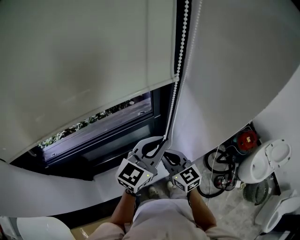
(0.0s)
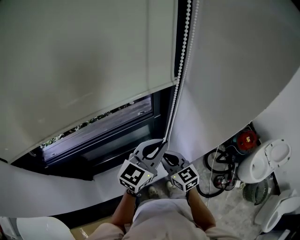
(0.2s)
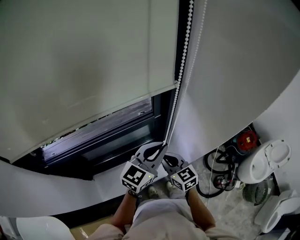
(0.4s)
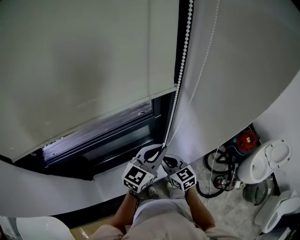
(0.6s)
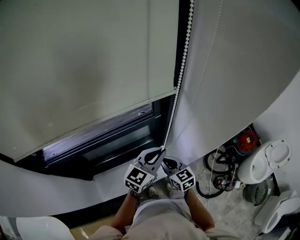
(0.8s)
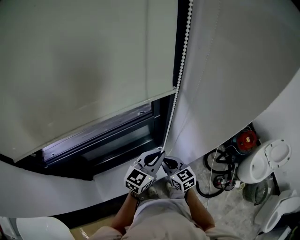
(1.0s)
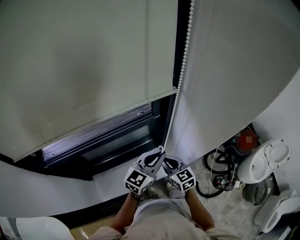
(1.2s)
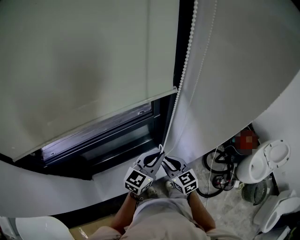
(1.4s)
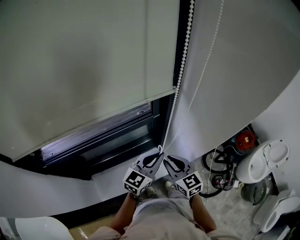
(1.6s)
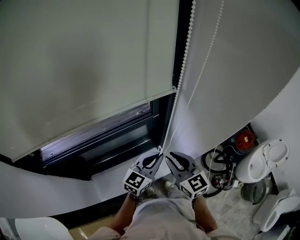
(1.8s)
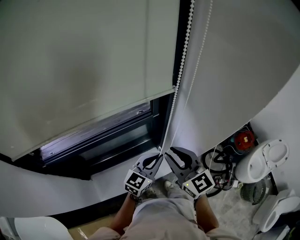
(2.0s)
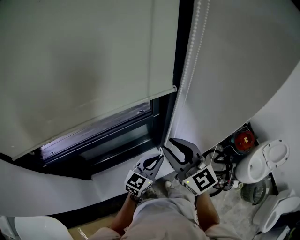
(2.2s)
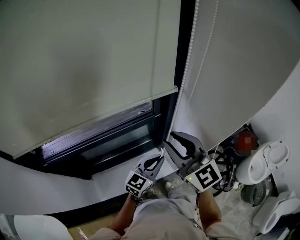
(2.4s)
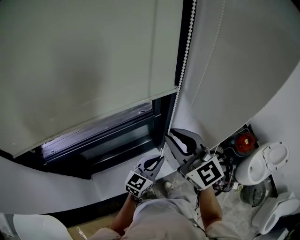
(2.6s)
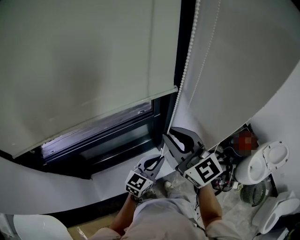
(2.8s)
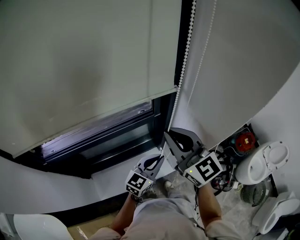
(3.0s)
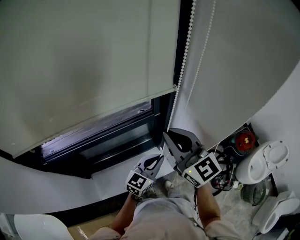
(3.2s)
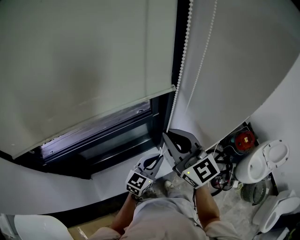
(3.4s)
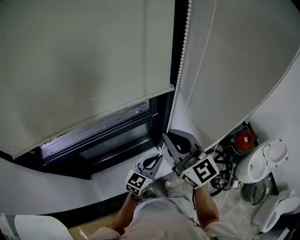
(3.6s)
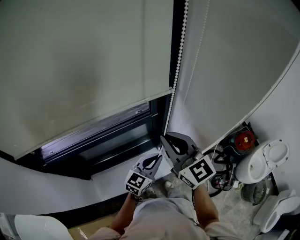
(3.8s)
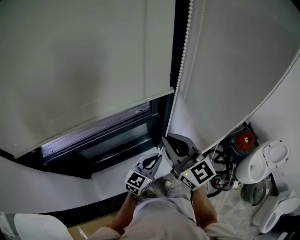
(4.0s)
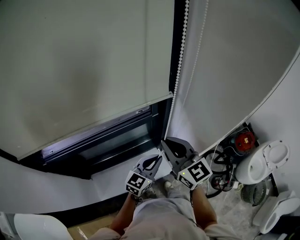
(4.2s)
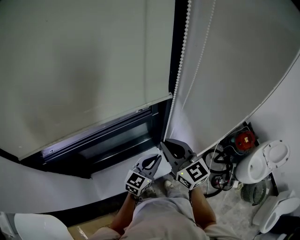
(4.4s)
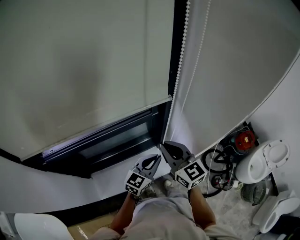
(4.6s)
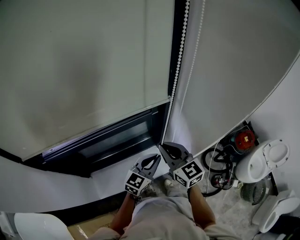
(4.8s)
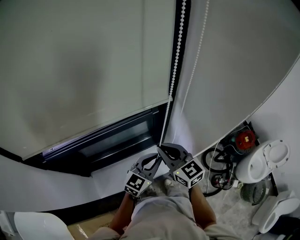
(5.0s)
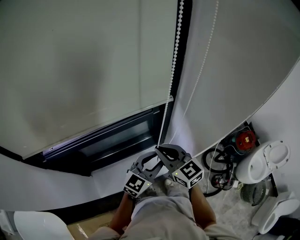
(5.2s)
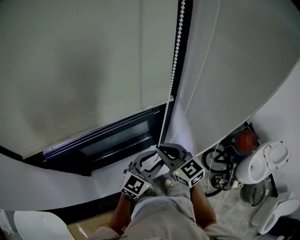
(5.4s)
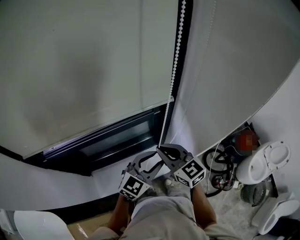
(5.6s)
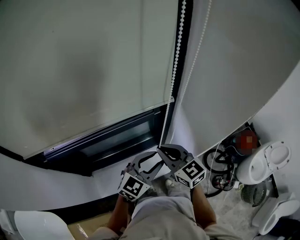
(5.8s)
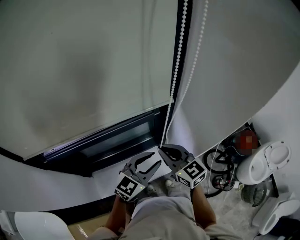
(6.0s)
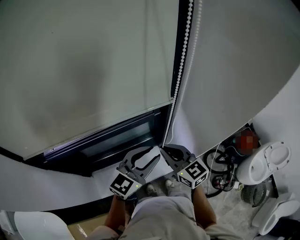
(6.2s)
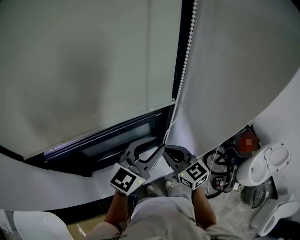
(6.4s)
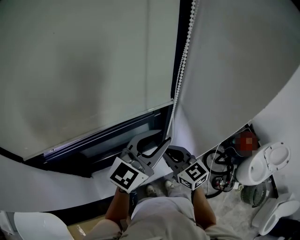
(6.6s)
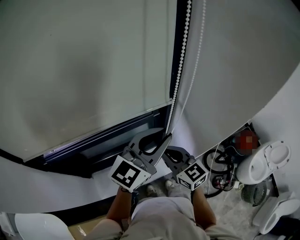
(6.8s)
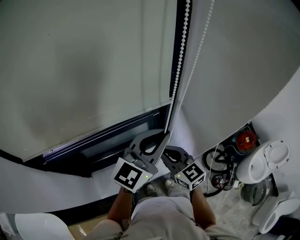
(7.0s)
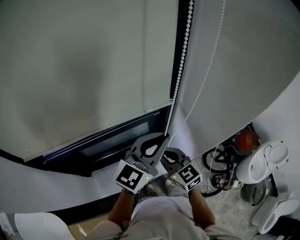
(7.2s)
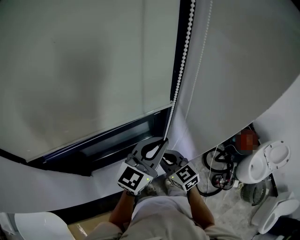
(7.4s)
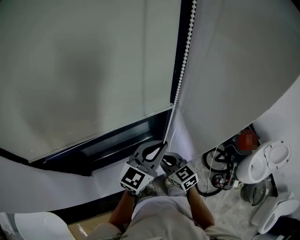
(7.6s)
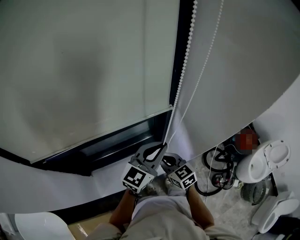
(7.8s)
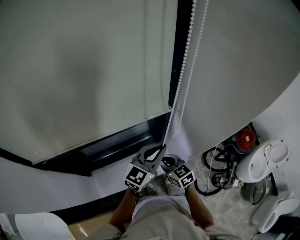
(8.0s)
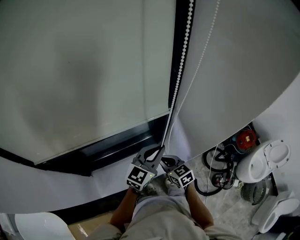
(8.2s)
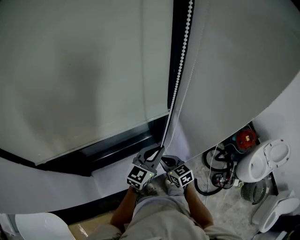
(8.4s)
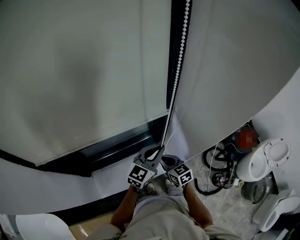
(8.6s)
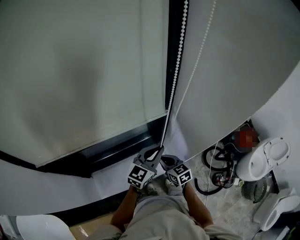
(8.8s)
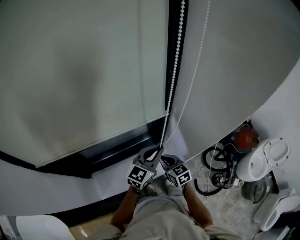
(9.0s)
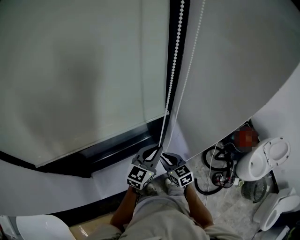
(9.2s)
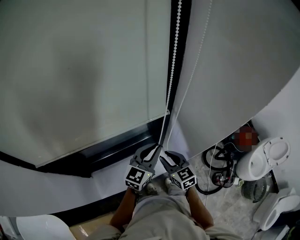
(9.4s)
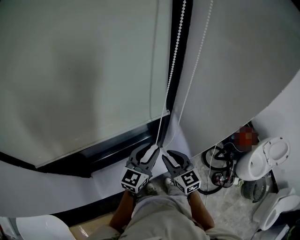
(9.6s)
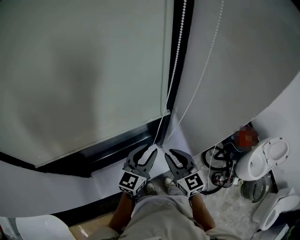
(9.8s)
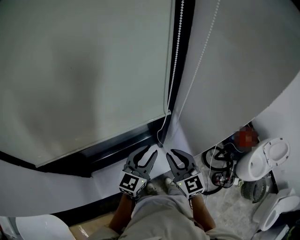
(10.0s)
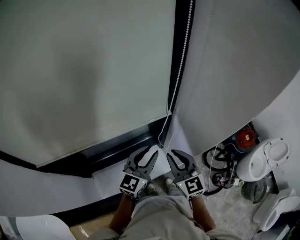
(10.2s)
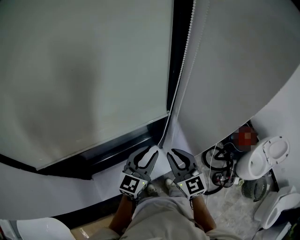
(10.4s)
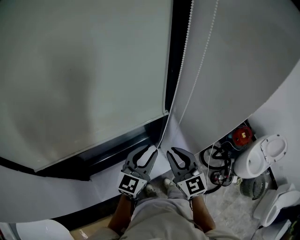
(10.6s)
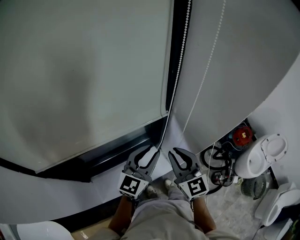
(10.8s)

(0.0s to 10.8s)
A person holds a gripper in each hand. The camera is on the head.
0.0s - 1.6s: The left gripper shifts approximately 10 cm downward.
1.6s - 3.0s: The right gripper moves upward, roughly 20 cm, and rotates roughly 20 degrees.
3.0s - 4.6s: The right gripper shifts approximately 10 cm downward.
4.6s - 6.2s: The left gripper moves upward, roughly 15 cm, and opens up.
6.2s - 7.8s: The left gripper moves roughly 10 cm upward and comes back, and closes its fingers. The right gripper heads downward, covering about 10 cm.
7.8s - 9.2s: The two grippers go some 5 cm downward.
9.2s - 10.8s: The left gripper moves upward, about 5 cm, and opens; the right gripper travels upward by approximately 20 cm, and swivels approximately 30 degrees.

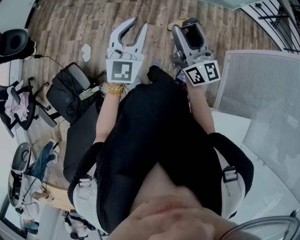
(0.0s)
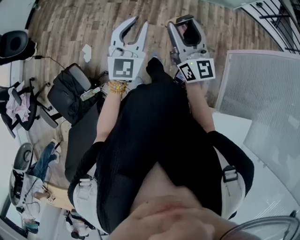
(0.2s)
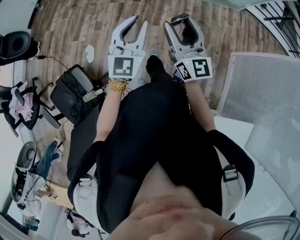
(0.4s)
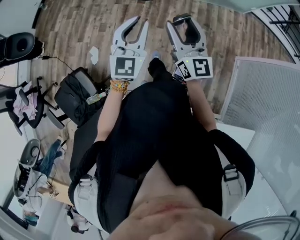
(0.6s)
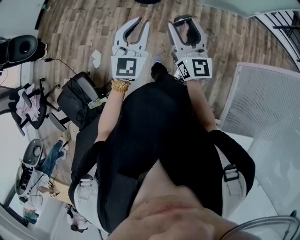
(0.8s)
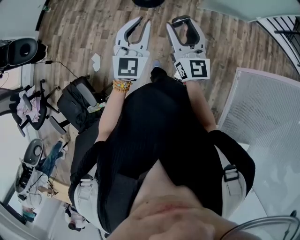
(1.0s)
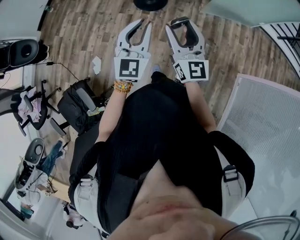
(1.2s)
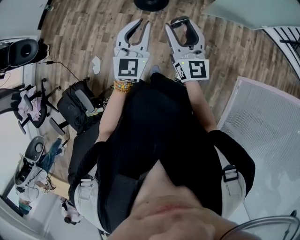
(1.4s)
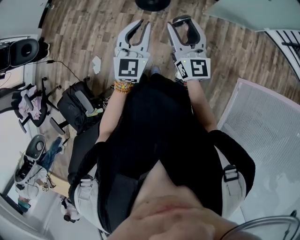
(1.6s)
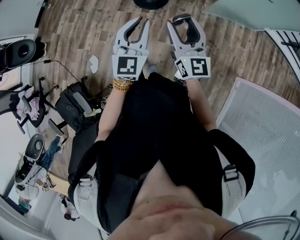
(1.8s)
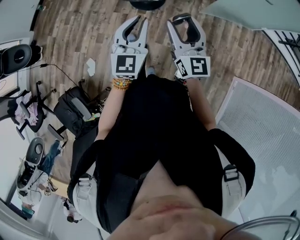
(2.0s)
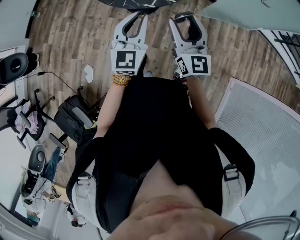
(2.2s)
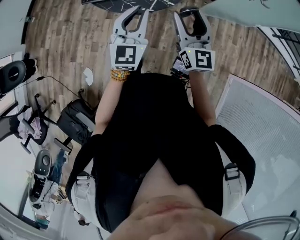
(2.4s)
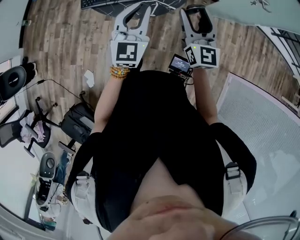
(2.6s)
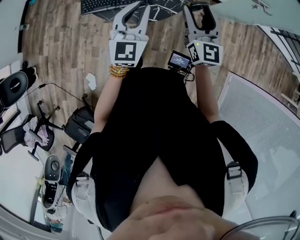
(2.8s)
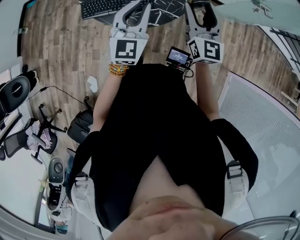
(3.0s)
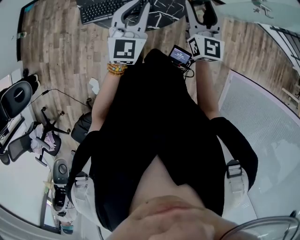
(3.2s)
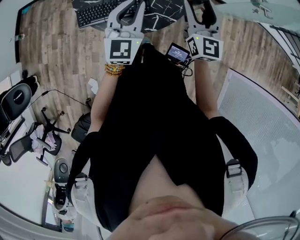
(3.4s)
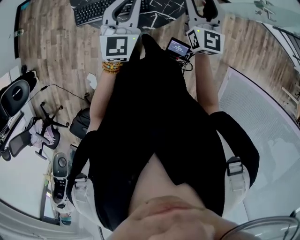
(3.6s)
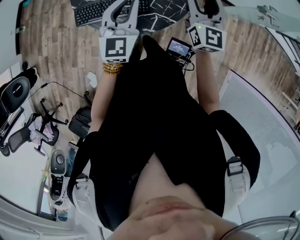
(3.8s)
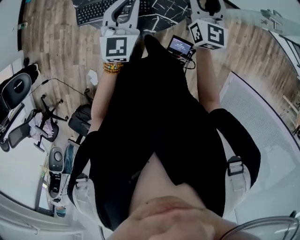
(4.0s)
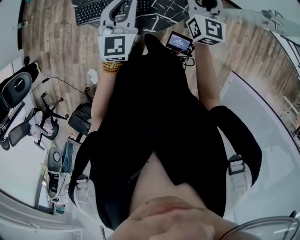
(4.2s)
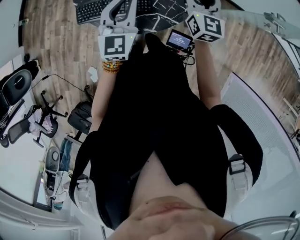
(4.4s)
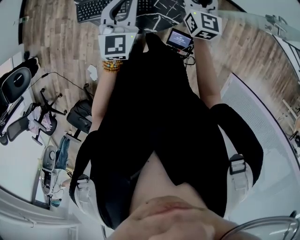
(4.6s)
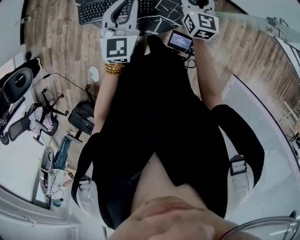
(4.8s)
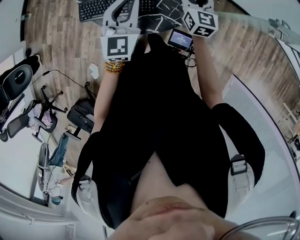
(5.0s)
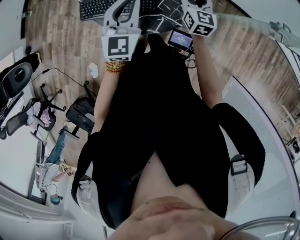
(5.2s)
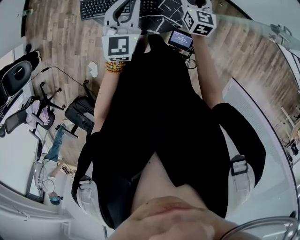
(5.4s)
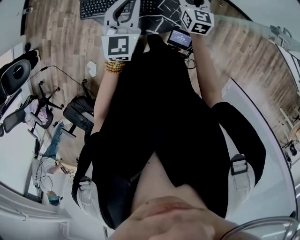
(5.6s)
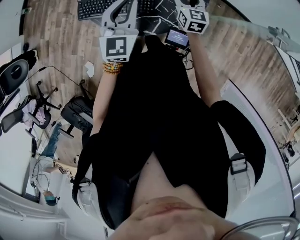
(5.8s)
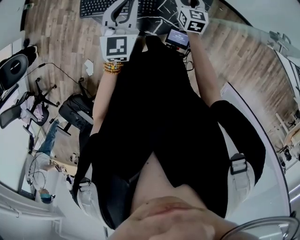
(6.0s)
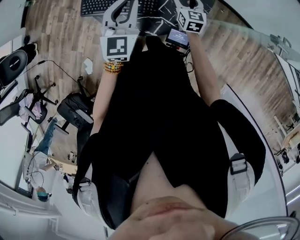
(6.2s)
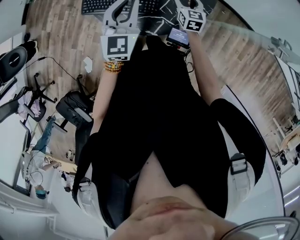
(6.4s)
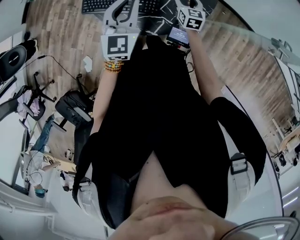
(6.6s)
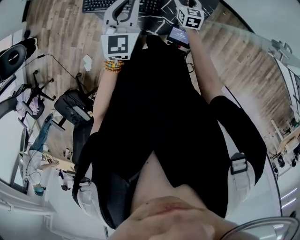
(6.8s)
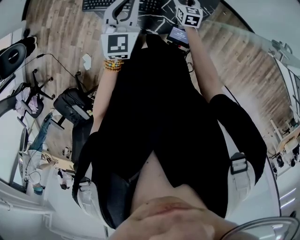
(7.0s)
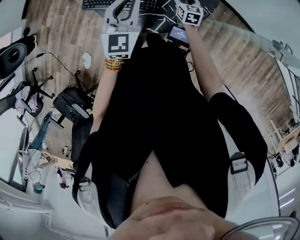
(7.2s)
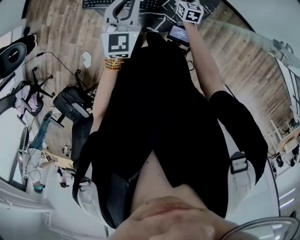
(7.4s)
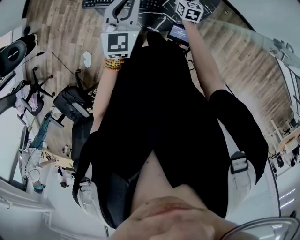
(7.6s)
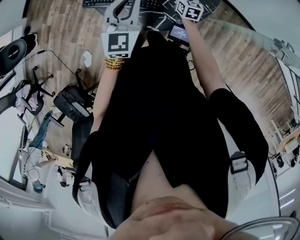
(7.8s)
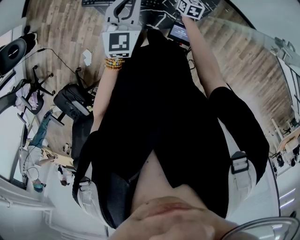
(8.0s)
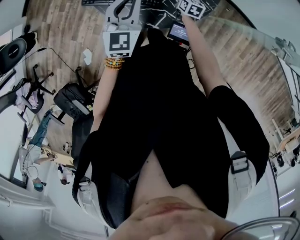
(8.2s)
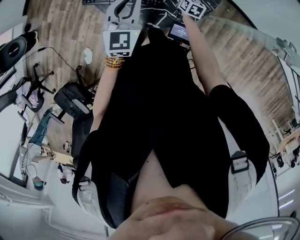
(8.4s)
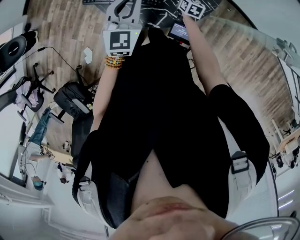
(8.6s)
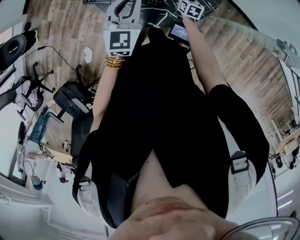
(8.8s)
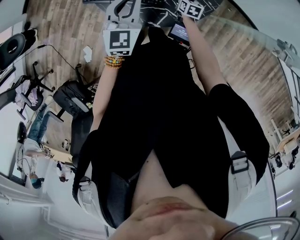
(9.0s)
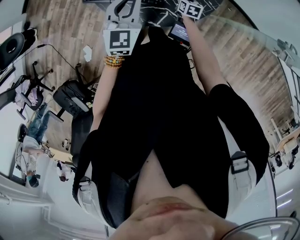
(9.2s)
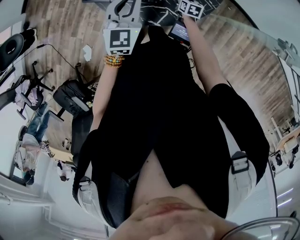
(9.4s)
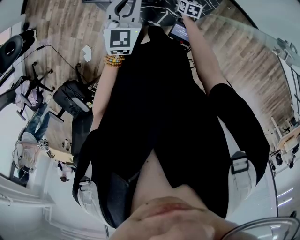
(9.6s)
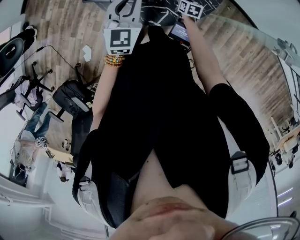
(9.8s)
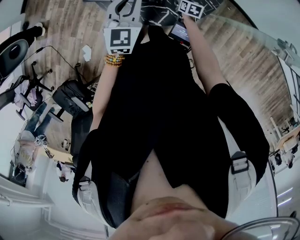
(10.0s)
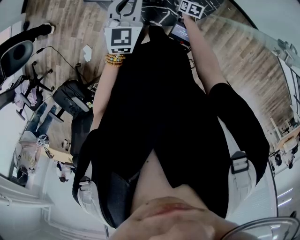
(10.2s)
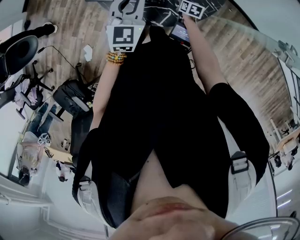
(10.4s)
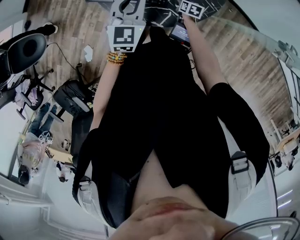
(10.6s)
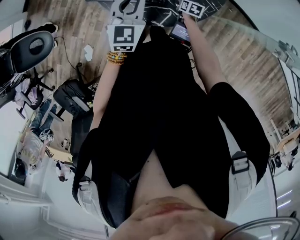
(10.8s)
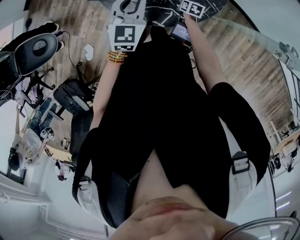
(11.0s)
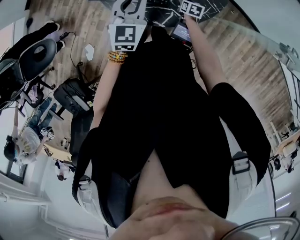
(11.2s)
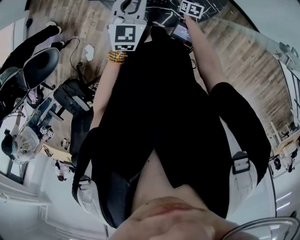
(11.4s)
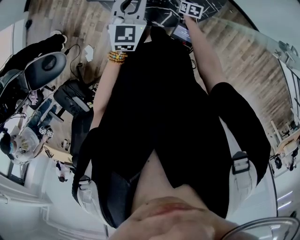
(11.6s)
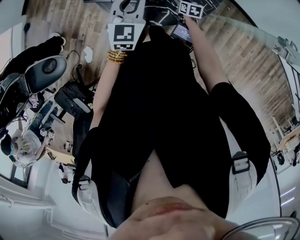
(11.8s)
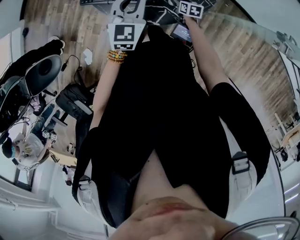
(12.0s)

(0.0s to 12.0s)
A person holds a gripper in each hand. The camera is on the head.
0.0s - 1.6s: Both grippers move forward, roughly 35 cm.
1.6s - 3.0s: Both grippers move forward, about 35 cm.
3.0s - 4.4s: The left gripper heads forward, covering approximately 10 cm. The right gripper shifts approximately 20 cm forward.
4.4s - 6.0s: The right gripper travels downward by some 20 cm, and rotates roughly 20 degrees.
6.0s - 7.6s: The right gripper goes some 10 cm downward.
7.6s - 9.0s: The right gripper heads downward, covering some 10 cm.
9.0s - 12.0s: The grippers move only a little.

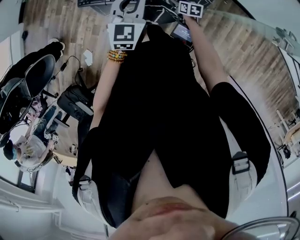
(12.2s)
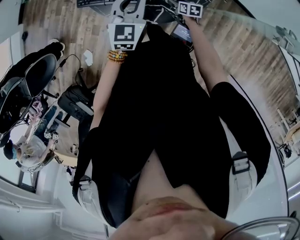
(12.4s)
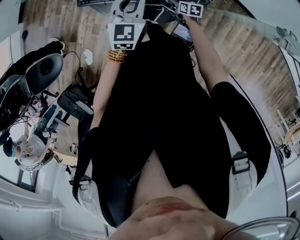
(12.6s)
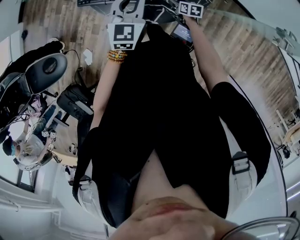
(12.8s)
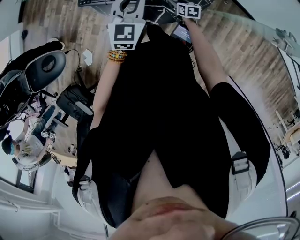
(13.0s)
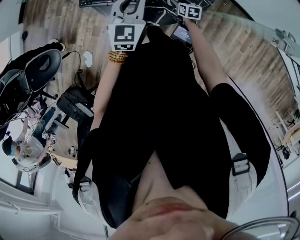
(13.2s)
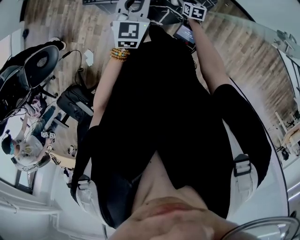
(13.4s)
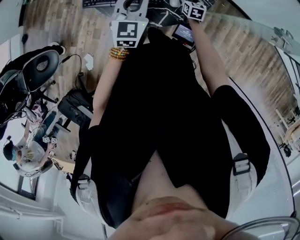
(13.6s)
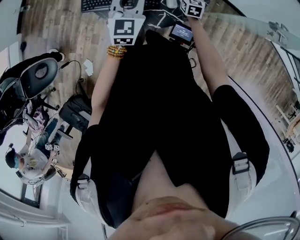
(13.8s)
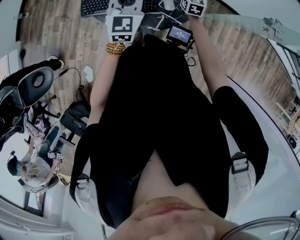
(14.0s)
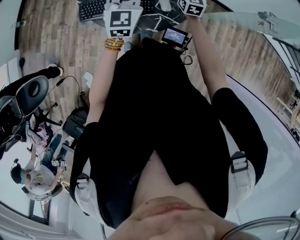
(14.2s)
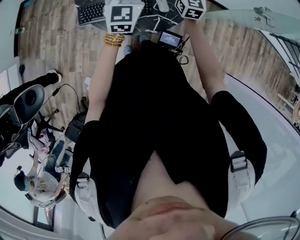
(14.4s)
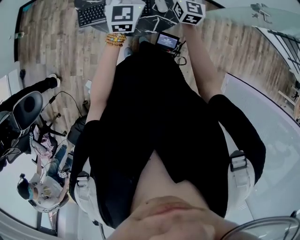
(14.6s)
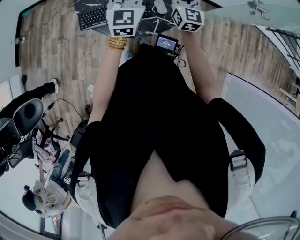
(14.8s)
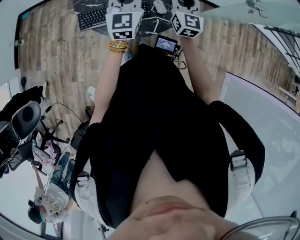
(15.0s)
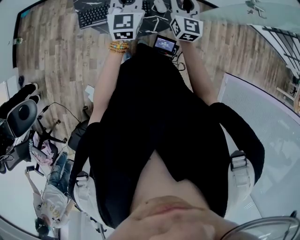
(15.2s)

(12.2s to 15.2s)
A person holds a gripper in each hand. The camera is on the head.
12.2s - 13.8s: The right gripper travels upward and forward by roughly 15 cm, and swivels some 30 degrees.
13.8s - 15.2s: The left gripper travels upward by roughly 5 cm, while the right gripper heads upward and backward, covering some 30 cm, angles its fingers upward, by approximately 30 degrees, and closes up.
